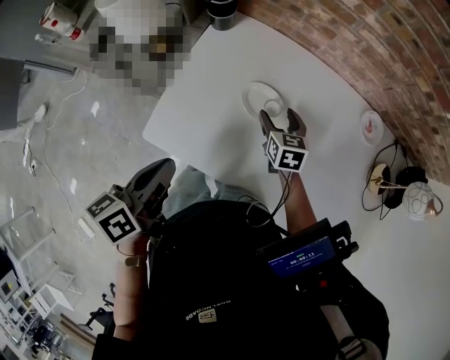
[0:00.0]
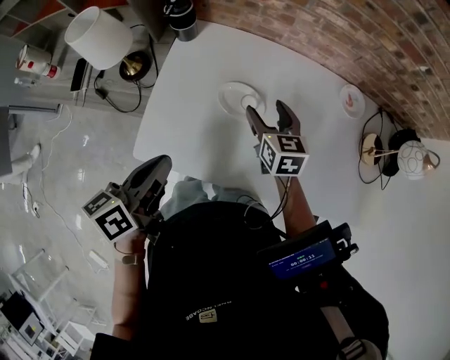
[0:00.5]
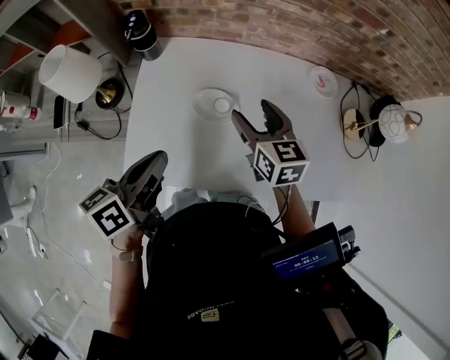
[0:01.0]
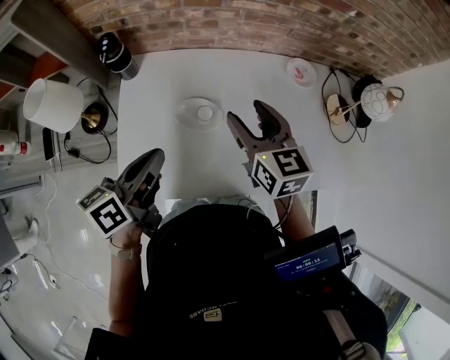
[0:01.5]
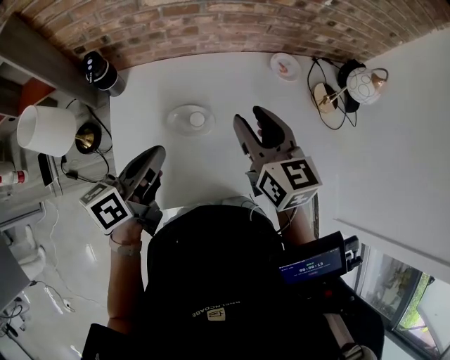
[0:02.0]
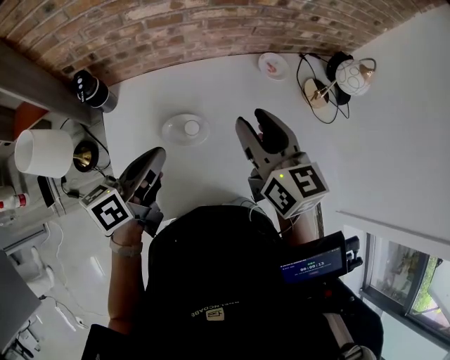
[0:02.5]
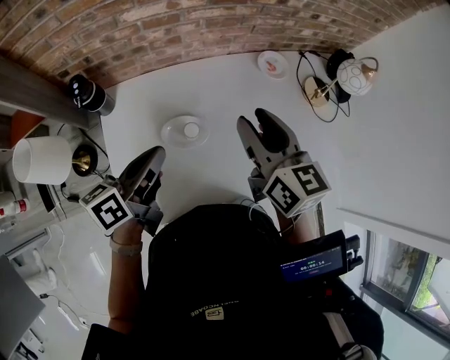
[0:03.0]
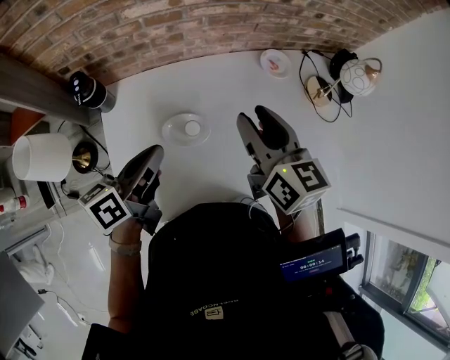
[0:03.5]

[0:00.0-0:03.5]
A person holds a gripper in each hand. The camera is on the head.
0:00.0 to 0:02.0: The right gripper is displaced upward by about 25 cm, turns by approximately 30 degrees, and closes its fingers; the left gripper moves approximately 15 cm, and swivels some 40 degrees.
0:02.0 to 0:03.5: There are only small adjustments of the grippers.

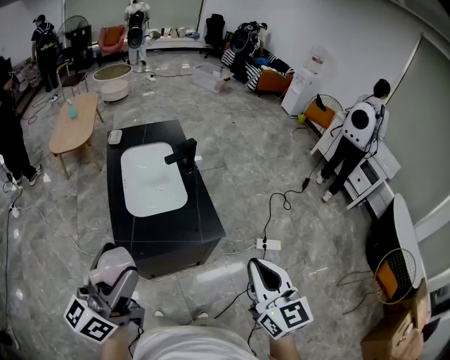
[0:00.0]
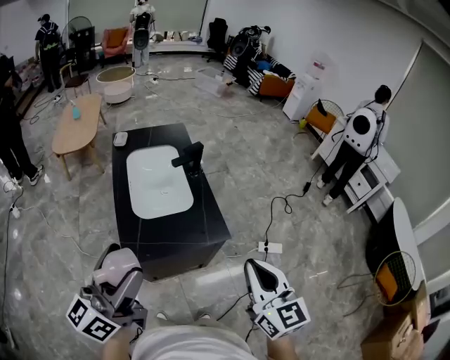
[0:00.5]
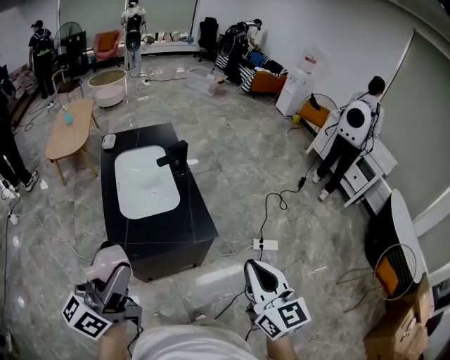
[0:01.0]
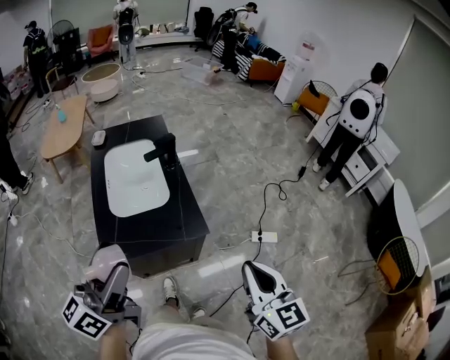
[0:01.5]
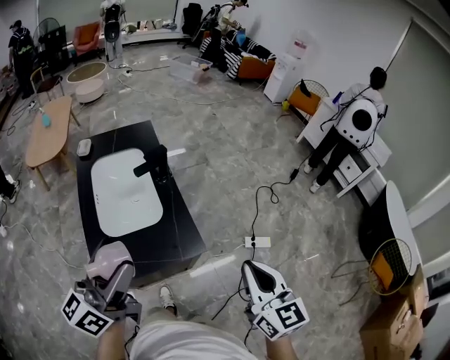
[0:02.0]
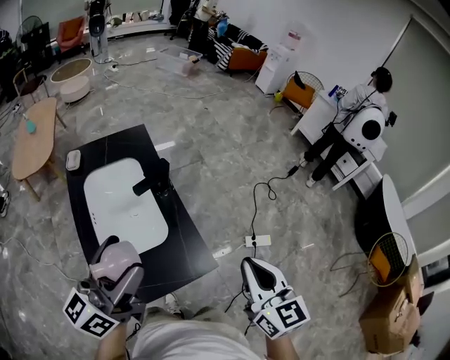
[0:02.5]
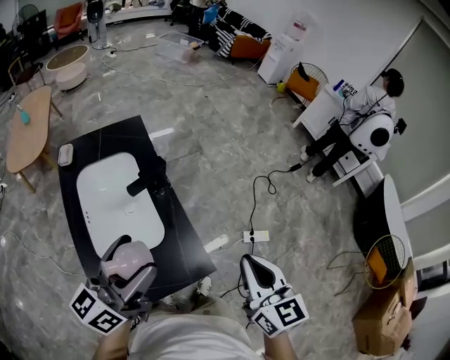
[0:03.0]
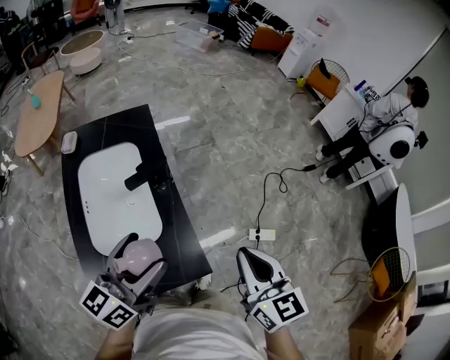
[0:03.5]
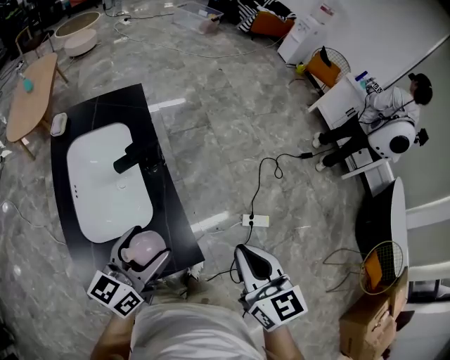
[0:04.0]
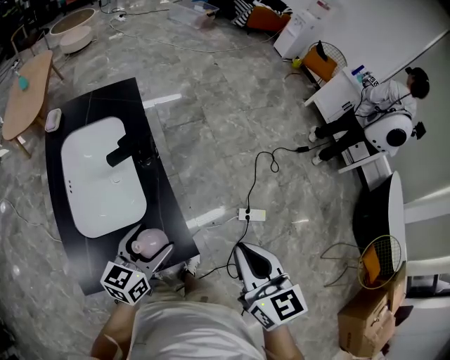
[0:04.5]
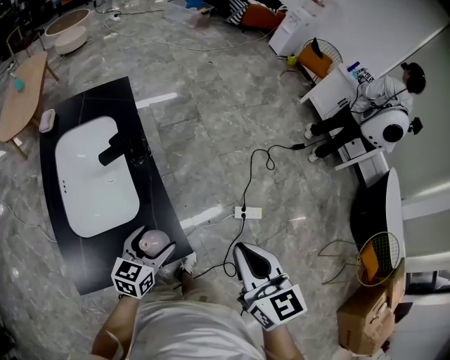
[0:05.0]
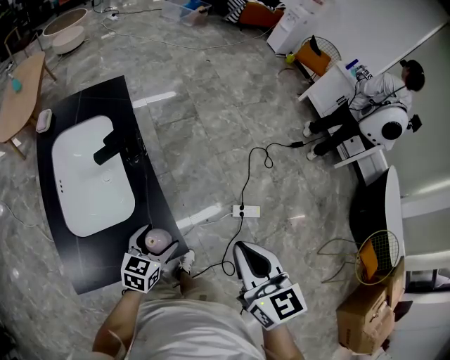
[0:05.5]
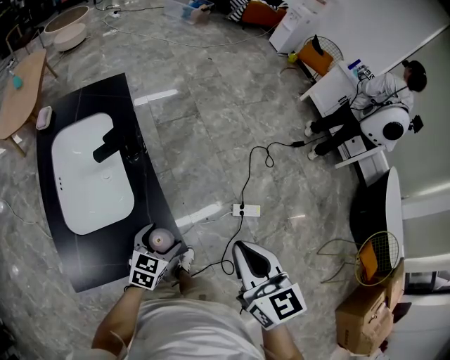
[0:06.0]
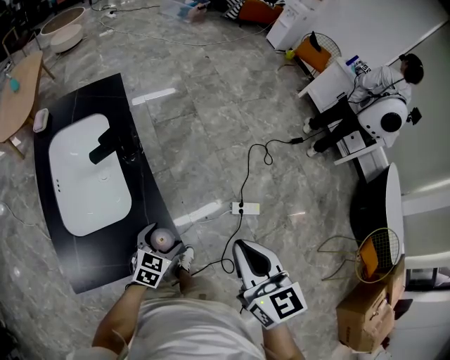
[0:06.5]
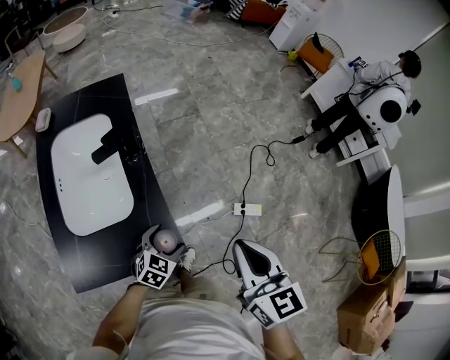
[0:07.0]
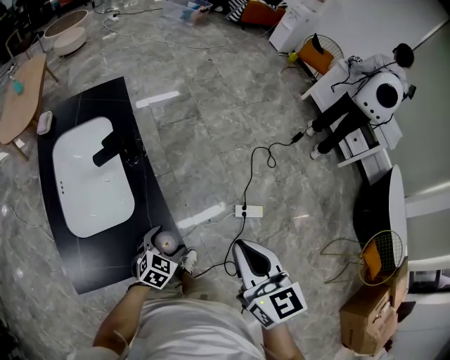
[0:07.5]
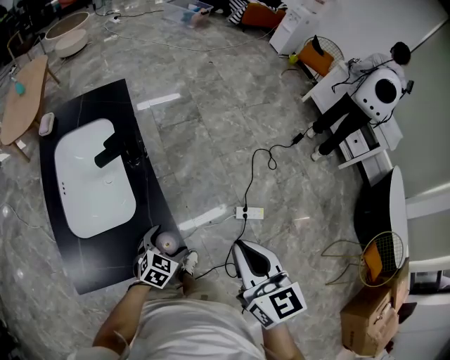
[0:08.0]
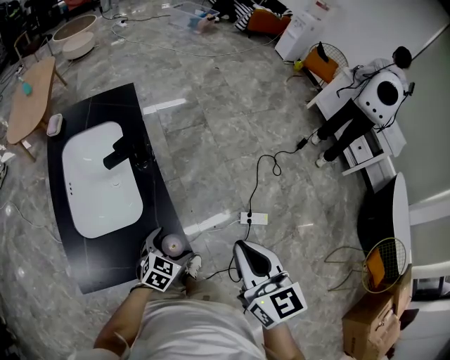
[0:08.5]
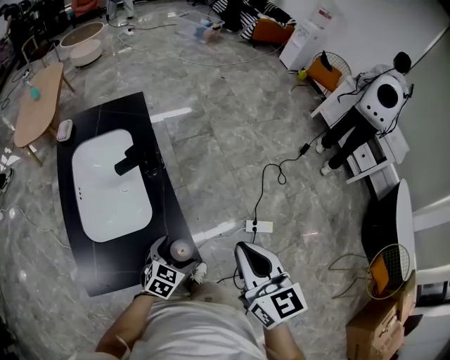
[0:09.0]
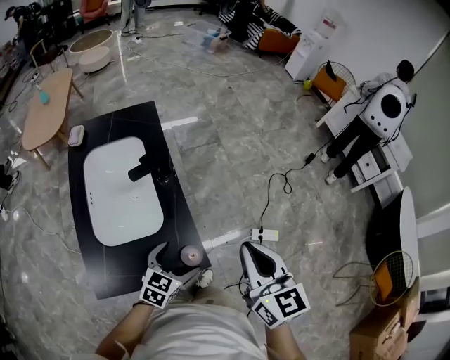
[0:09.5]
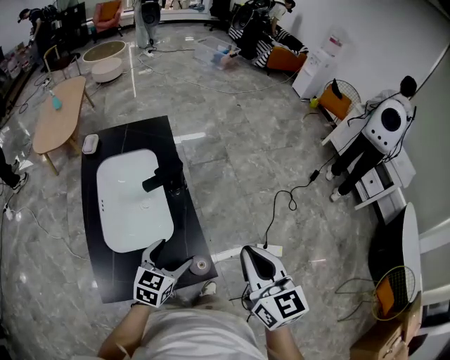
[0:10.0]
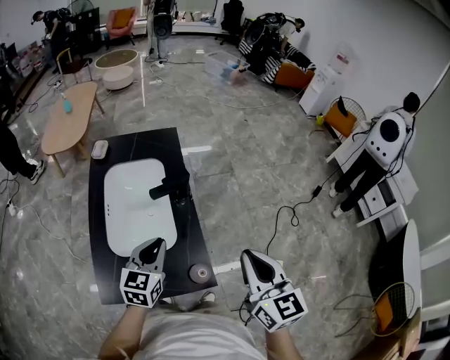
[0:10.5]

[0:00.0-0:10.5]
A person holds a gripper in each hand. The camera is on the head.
0:00.0 to 0:02.0: Both grippers move forward and to the right, roughly 15 cm.
0:02.0 to 0:04.0: The left gripper travels forward and downward by some 25 cm, and changes its angle by roughly 20 degrees. Meanwhile the right gripper goes about 20 cm forward.
0:04.0 to 0:06.5: The left gripper travels downward and to the right by roughly 25 cm, and points its fingers about 30 degrees further downward; the right gripper goes about 5 cm to the right.
0:06.5 to 0:08.5: The grippers make only small movements.
0:08.5 to 0:10.5: The right gripper heads to the left and upward, covering roughly 10 cm. Meanwhile the left gripper is displaced upward and to the left by roughly 25 cm, rotates about 40 degrees, and closes its fingers.

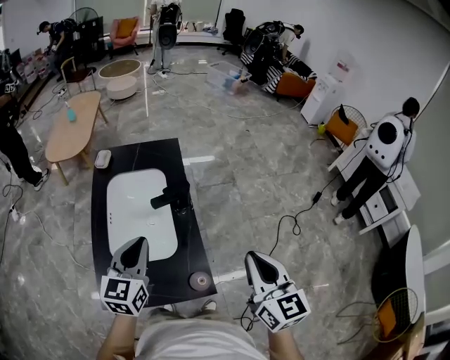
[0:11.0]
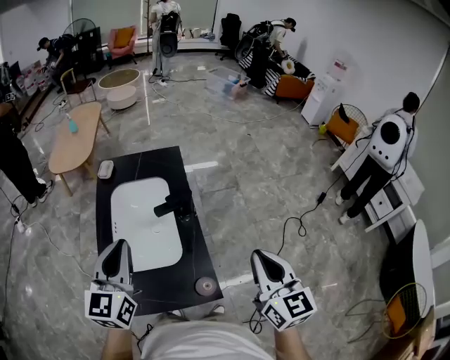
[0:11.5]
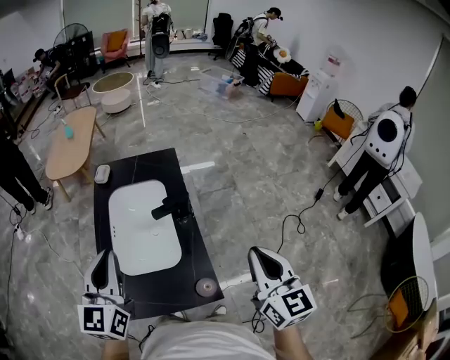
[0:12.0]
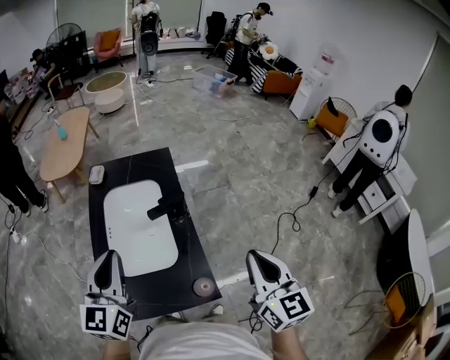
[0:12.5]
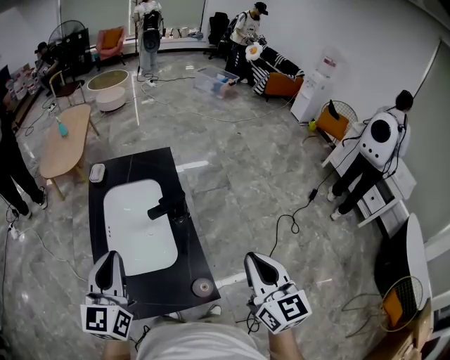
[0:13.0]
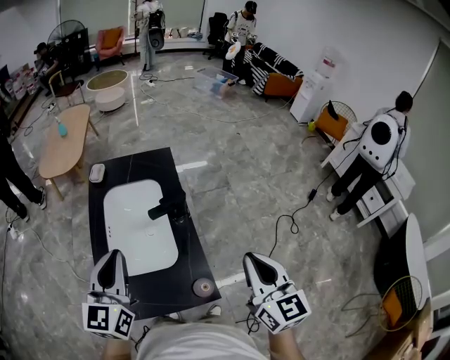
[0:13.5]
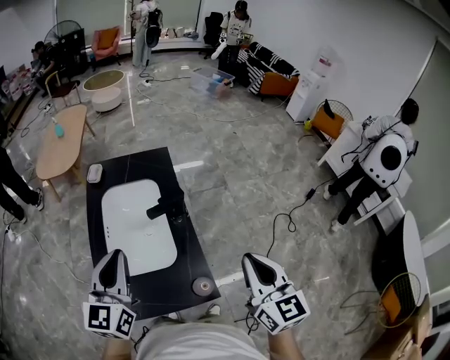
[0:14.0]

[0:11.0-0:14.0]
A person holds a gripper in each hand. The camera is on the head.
0:11.0 to 0:12.5: The left gripper travels upward and to the left by about 10 cm.
0:12.5 to 0:14.0: There are only small adjustments of the grippers.

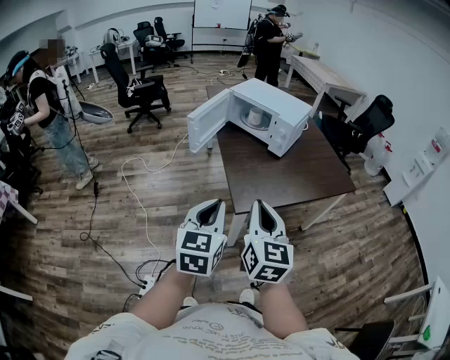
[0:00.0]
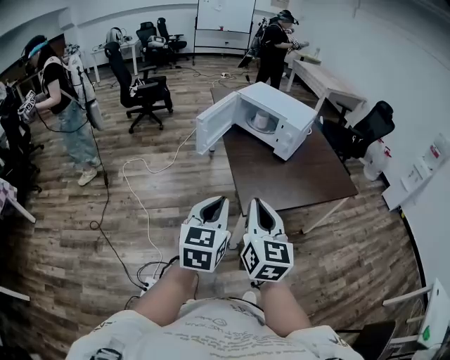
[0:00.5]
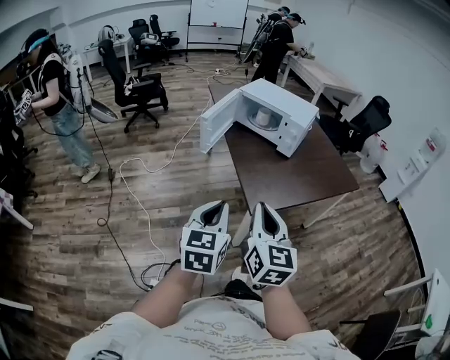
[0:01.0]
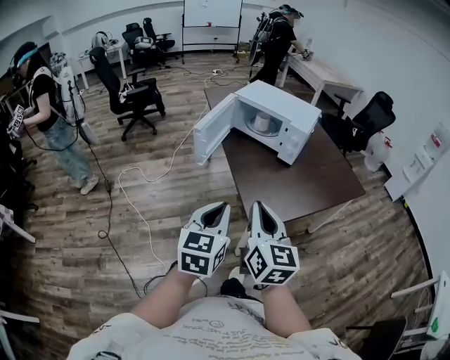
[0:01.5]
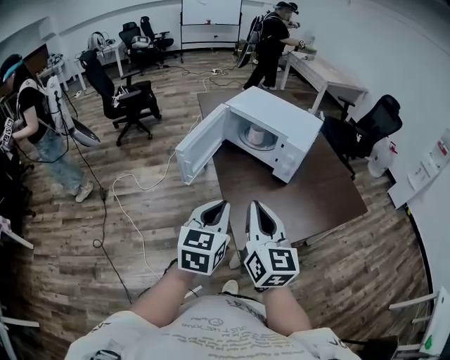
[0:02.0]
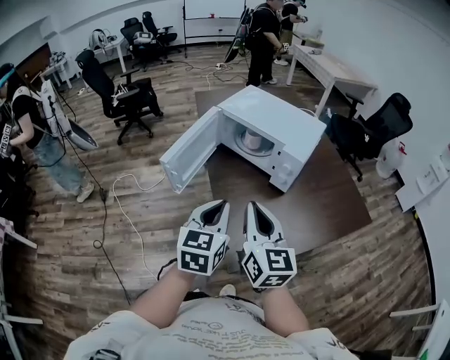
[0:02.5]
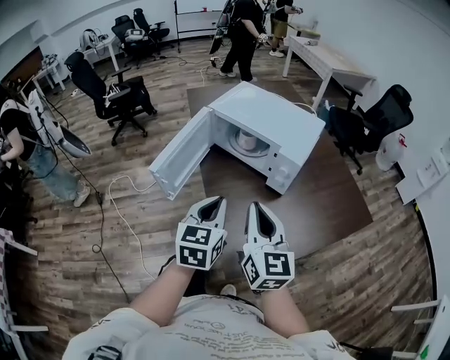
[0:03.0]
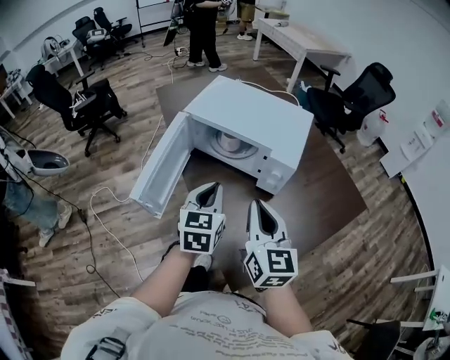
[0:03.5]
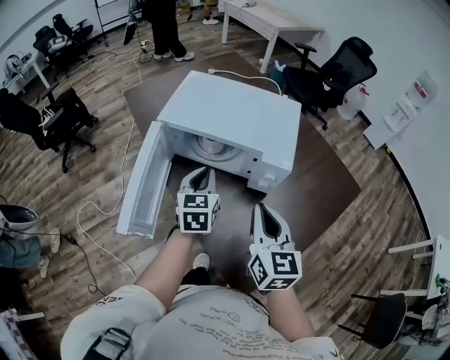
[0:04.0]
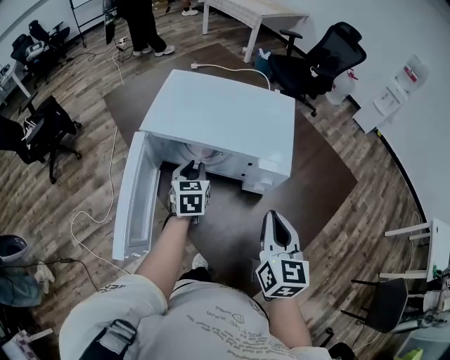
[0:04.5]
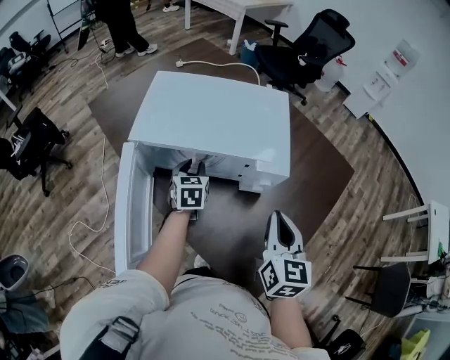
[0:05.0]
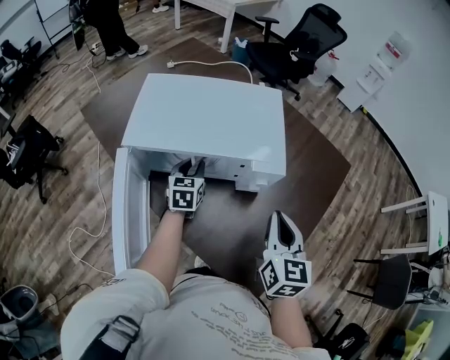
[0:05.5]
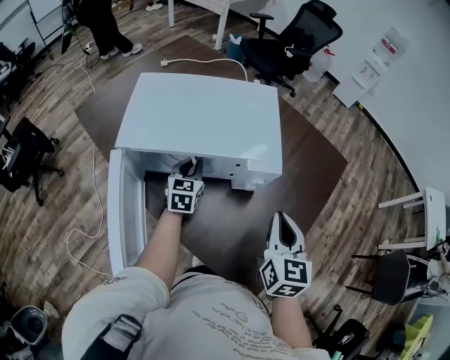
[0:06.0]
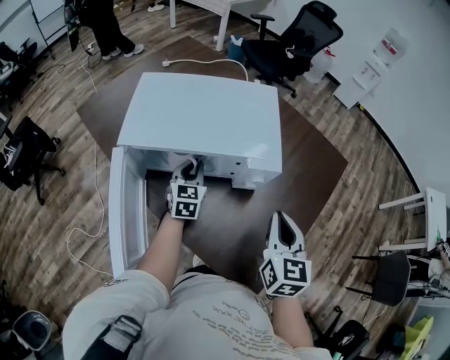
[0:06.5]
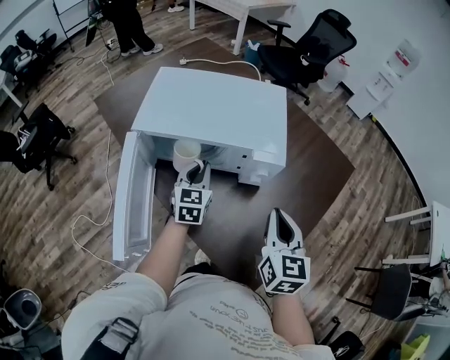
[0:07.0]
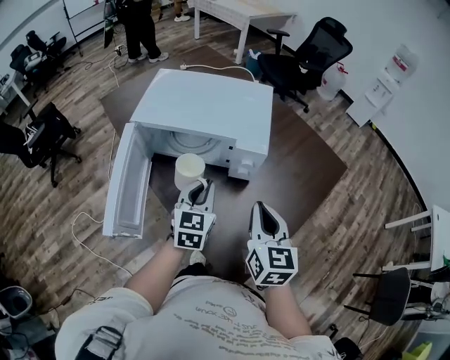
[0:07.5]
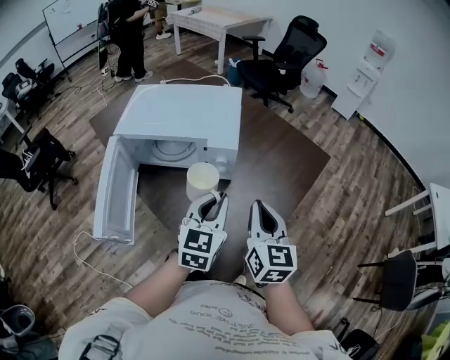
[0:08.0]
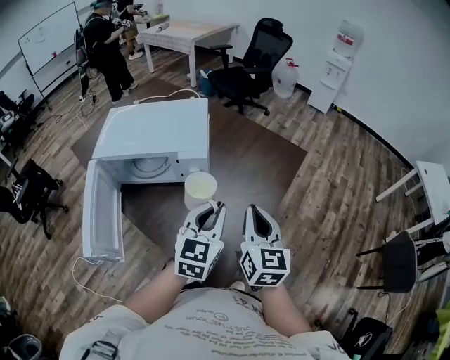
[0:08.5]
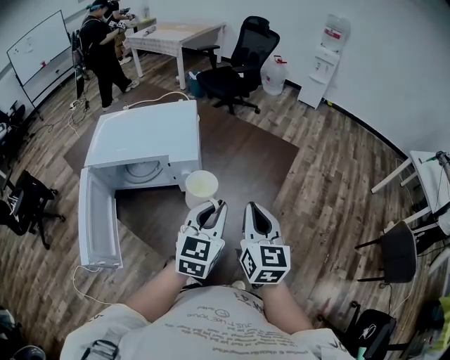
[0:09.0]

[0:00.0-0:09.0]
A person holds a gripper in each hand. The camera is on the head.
0:00.0 to 0:02.0: Both grippers travel together forward, approximately 20 cm.
0:02.0 to 0:04.5: The right gripper heads forward, covering approximately 25 cm, and turns by some 40 degrees. The left gripper heads forward and downward, covering approximately 50 cm.
0:04.5 to 0:07.0: The left gripper heads to the right, covering about 5 cm.
0:07.0 to 0:09.0: The right gripper heads to the right, covering approximately 15 cm. Meanwhile the left gripper moves to the right, backward and upward, some 35 cm, and changes its angle by some 20 degrees.
